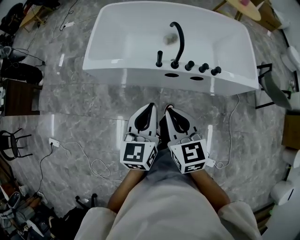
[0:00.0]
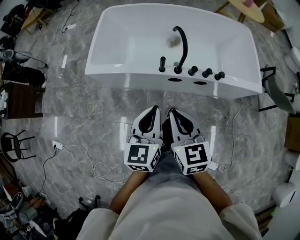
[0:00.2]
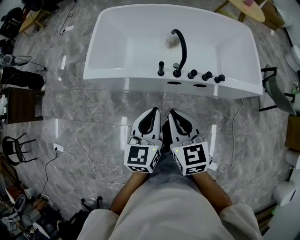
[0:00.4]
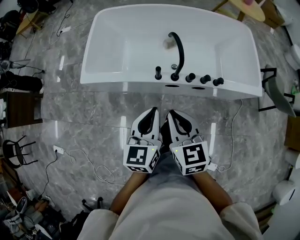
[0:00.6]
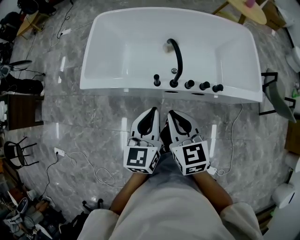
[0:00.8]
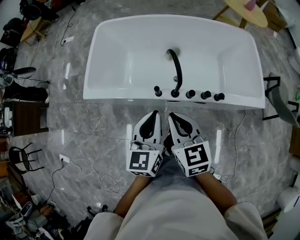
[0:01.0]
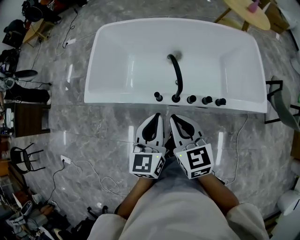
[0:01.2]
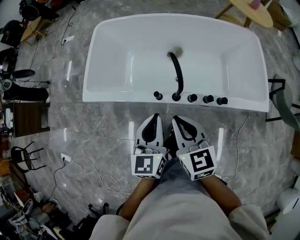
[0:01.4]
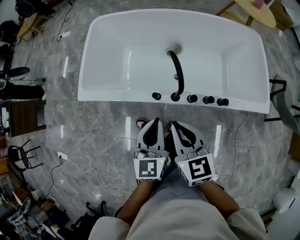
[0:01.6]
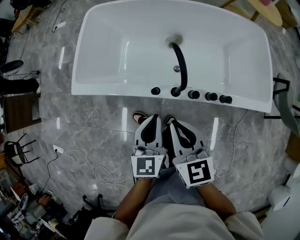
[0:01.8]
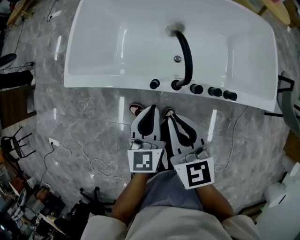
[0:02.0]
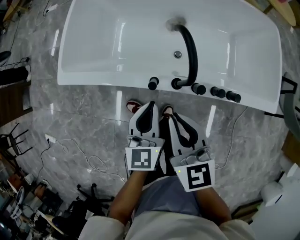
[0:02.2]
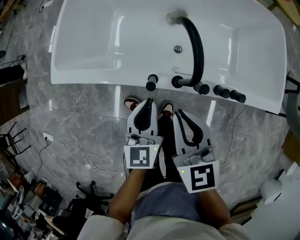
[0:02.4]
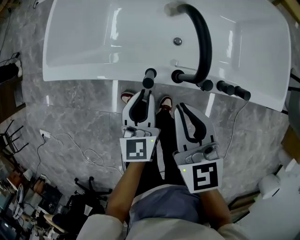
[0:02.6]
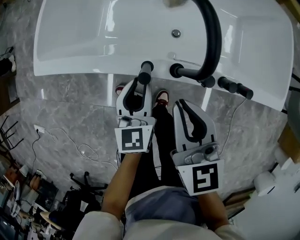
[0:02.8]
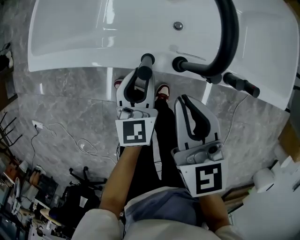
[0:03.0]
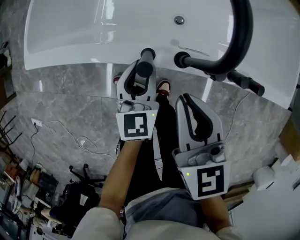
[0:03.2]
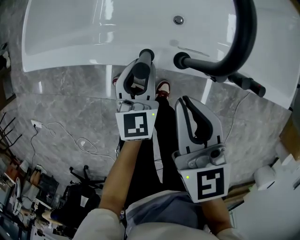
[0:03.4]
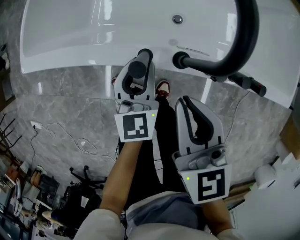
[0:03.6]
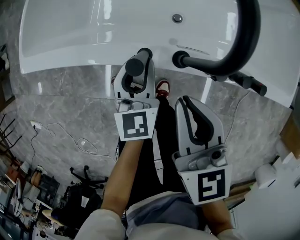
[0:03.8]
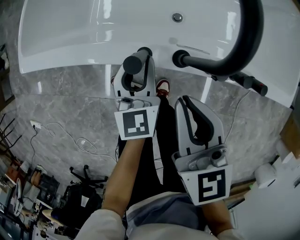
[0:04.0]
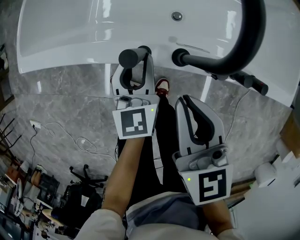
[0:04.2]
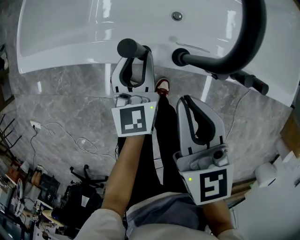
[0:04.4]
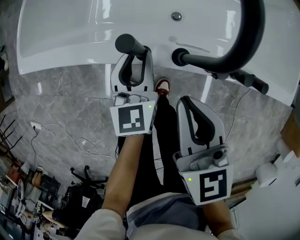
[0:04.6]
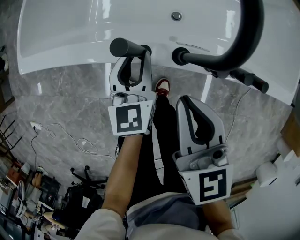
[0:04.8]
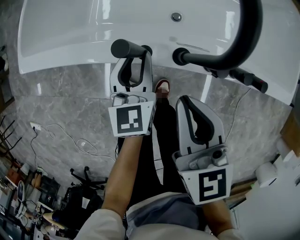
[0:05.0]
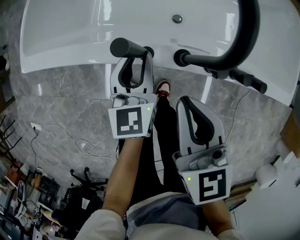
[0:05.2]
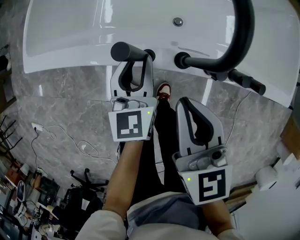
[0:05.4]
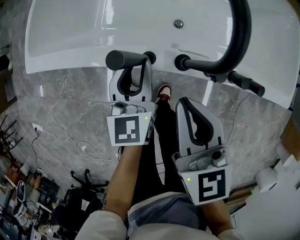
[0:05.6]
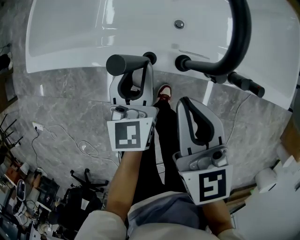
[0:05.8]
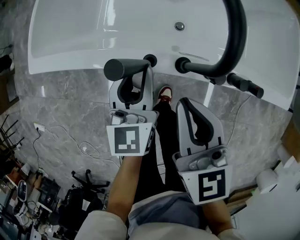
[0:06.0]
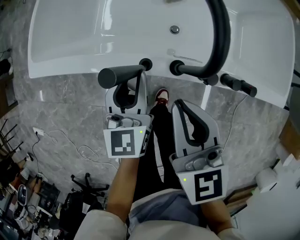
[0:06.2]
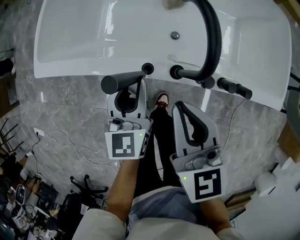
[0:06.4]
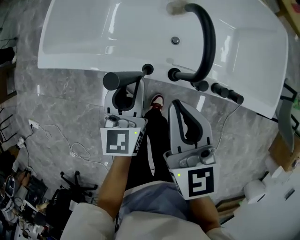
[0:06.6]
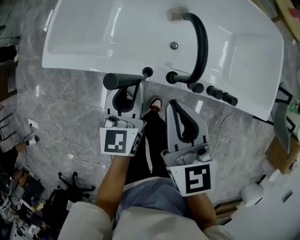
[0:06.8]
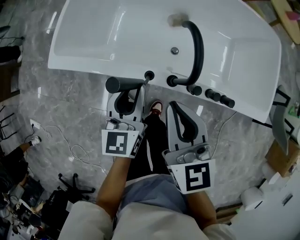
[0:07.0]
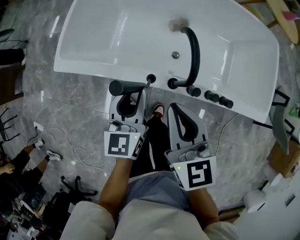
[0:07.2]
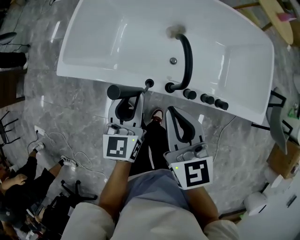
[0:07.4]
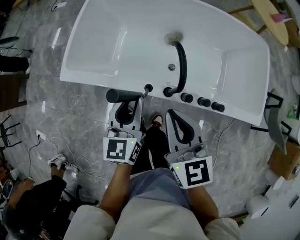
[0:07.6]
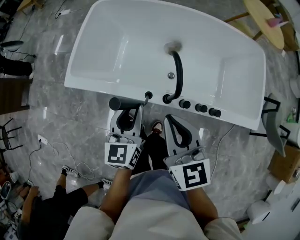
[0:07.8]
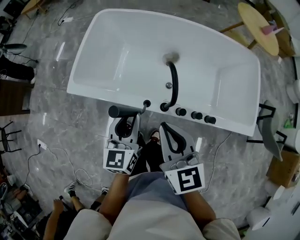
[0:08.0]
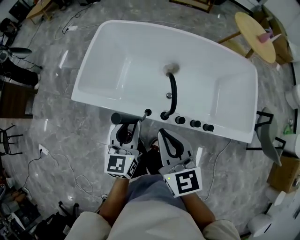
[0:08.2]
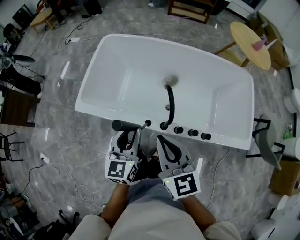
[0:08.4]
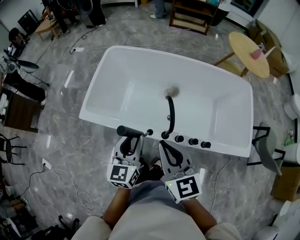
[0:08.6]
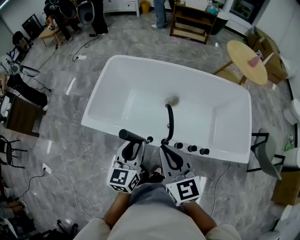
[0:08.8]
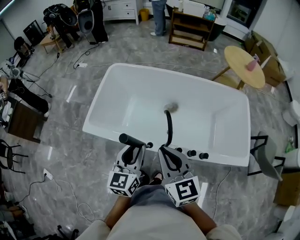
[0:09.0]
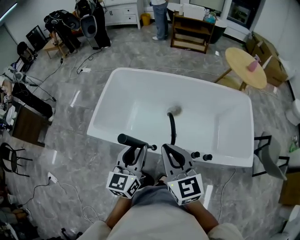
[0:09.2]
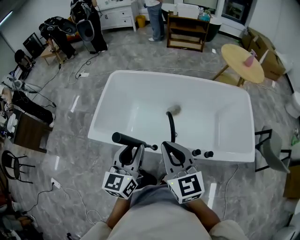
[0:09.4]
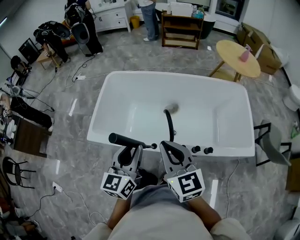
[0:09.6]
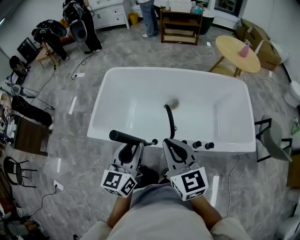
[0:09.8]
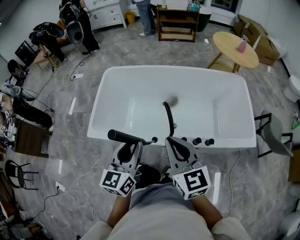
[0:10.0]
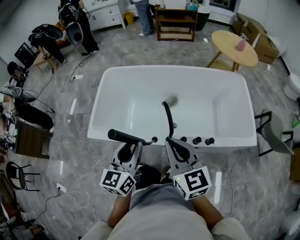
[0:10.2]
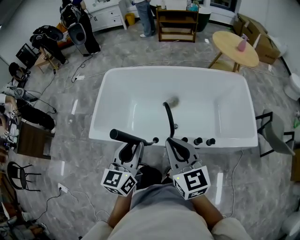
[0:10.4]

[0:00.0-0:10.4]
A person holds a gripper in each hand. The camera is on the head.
0:00.0 to 0:01.4: Both grippers move forward, some 20 cm.
0:01.4 to 0:03.0: The left gripper is displaced downward by approximately 30 cm, and opens. The right gripper heads downward, covering roughly 20 cm.
0:03.0 to 0:04.4: There are only small adjustments of the grippers.
0:04.4 to 0:06.0: The left gripper moves upward, some 5 cm.
0:06.0 to 0:07.4: The grippers both shift upward by about 15 cm.
0:07.4 to 0:09.0: The two grippers go roughly 15 cm upward.
0:09.0 to 0:10.4: There are only small adjustments of the grippers.

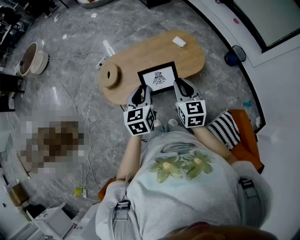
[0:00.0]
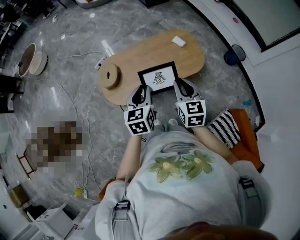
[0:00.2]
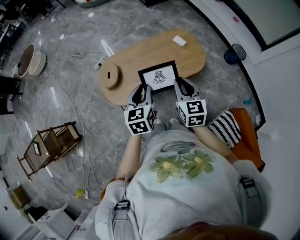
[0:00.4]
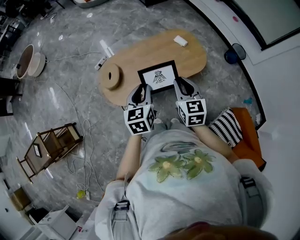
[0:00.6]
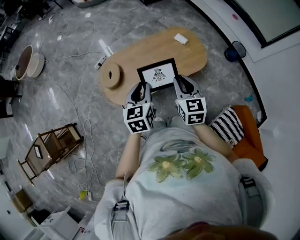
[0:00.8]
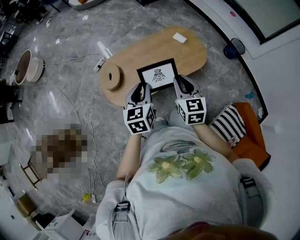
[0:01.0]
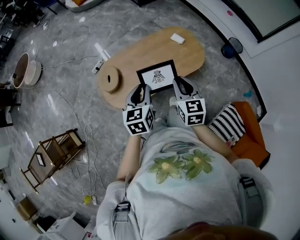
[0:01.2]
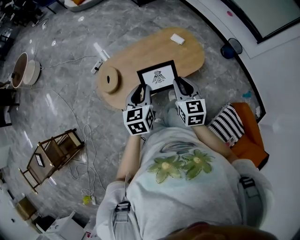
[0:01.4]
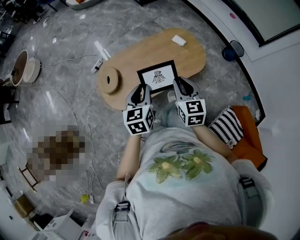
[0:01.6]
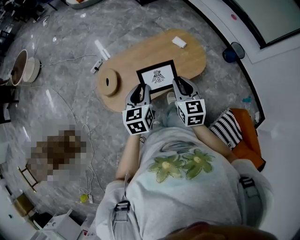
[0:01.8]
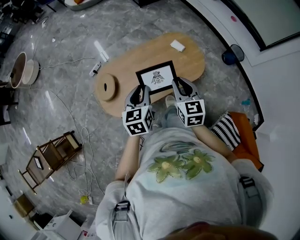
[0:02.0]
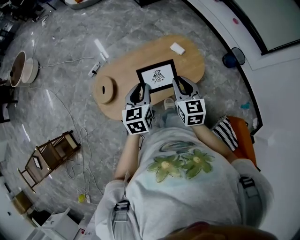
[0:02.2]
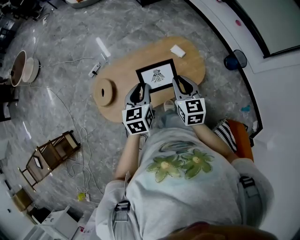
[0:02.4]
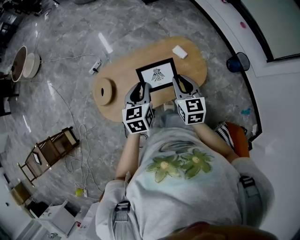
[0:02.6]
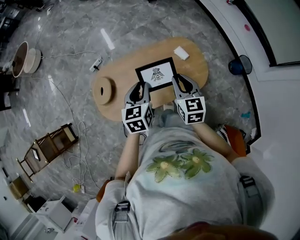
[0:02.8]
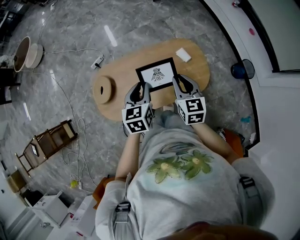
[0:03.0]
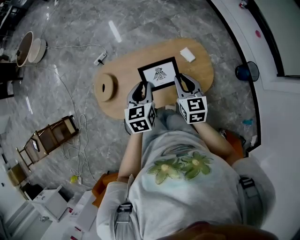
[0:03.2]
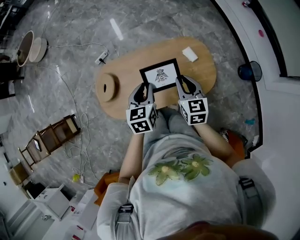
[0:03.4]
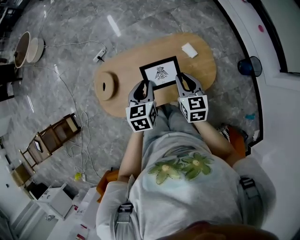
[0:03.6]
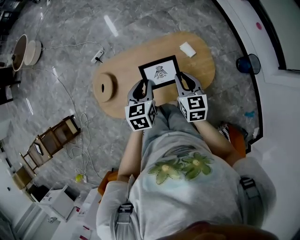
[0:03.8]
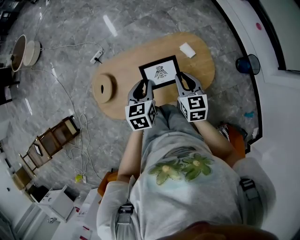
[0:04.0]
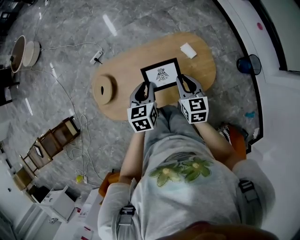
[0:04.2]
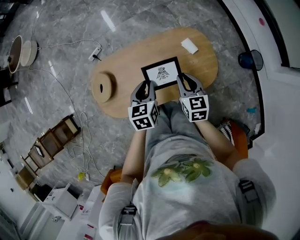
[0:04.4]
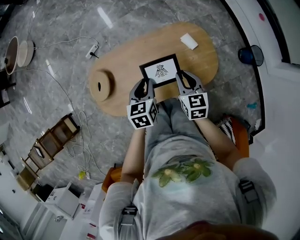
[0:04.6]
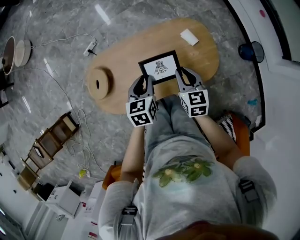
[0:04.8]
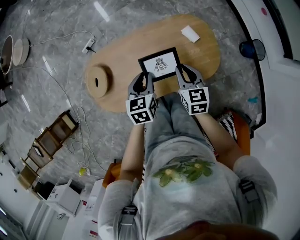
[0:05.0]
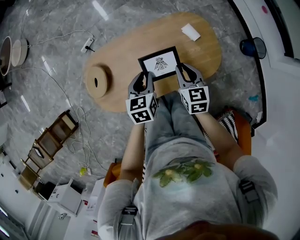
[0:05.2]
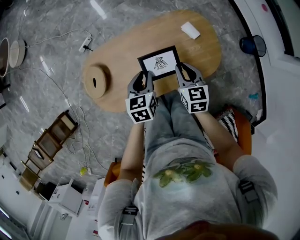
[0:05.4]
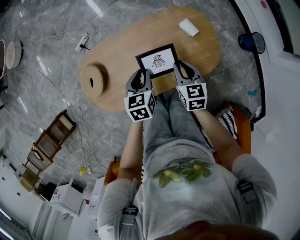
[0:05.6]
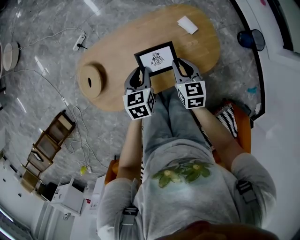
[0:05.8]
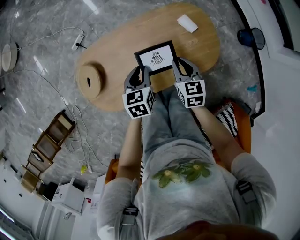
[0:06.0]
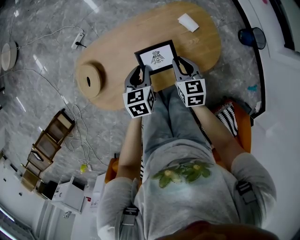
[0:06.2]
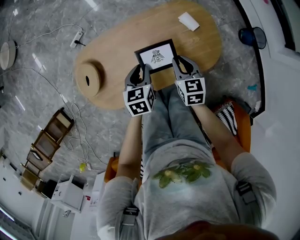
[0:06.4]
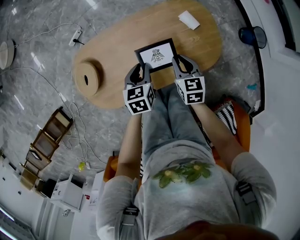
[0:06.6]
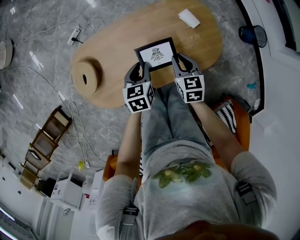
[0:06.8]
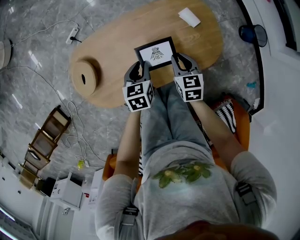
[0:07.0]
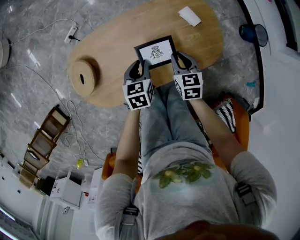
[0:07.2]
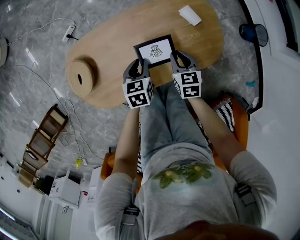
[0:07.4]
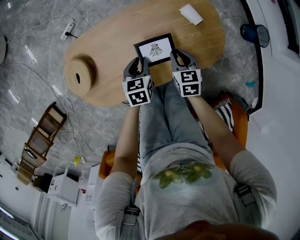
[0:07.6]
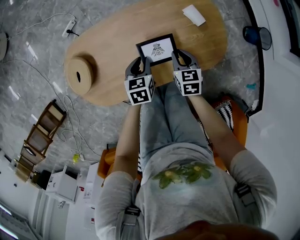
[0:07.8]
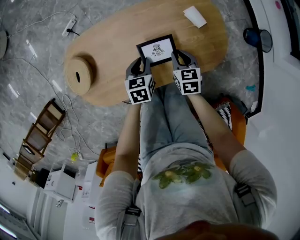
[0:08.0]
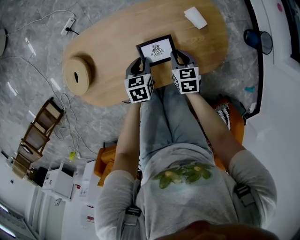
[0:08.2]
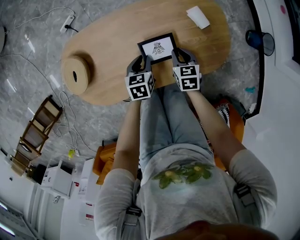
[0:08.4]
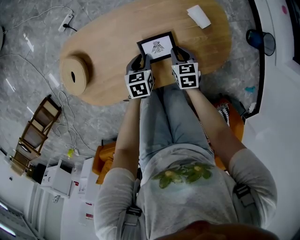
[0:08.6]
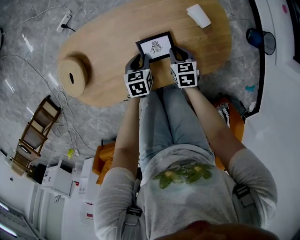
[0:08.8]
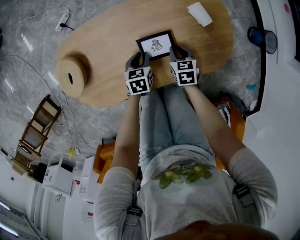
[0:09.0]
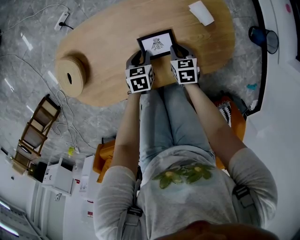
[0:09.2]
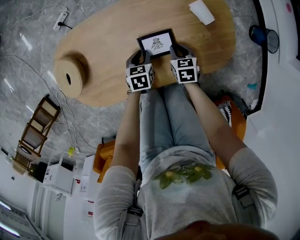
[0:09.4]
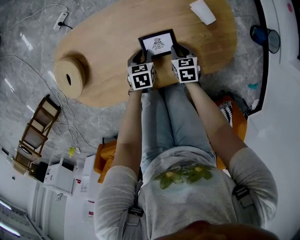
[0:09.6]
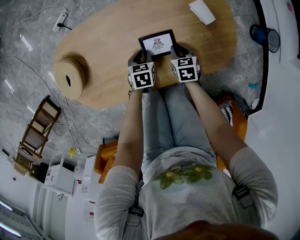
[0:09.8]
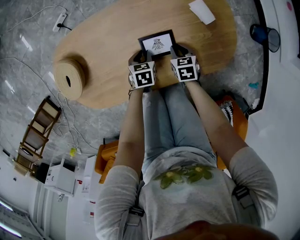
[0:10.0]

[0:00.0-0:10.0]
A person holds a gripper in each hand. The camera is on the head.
0:00.0 to 0:01.4: The right gripper ends up roughly 5 cm from where it was. The left gripper ends up roughly 5 cm from where it was.
0:01.4 to 0:02.8: The grippers both shift forward by about 20 cm.
0:02.8 to 0:04.2: The two grippers go approximately 10 cm downward.
0:04.2 to 0:05.8: The grippers both shift downward by about 10 cm.
0:05.8 to 0:07.2: Both grippers move downward, some 10 cm.
0:07.2 to 0:08.6: Both grippers travel together downward, roughly 10 cm.
0:08.6 to 0:10.0: Both grippers move downward, roughly 10 cm.

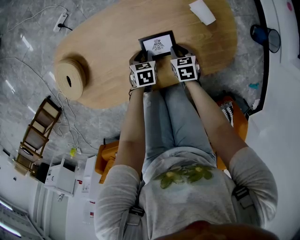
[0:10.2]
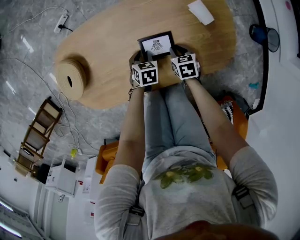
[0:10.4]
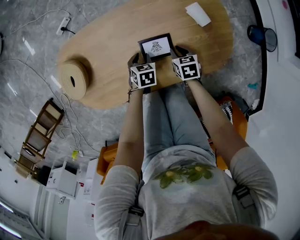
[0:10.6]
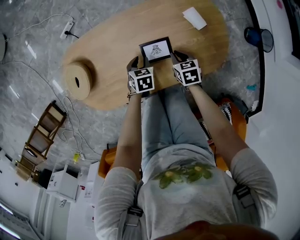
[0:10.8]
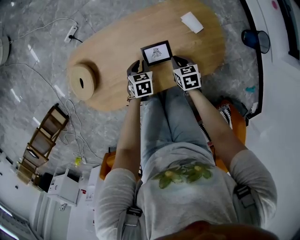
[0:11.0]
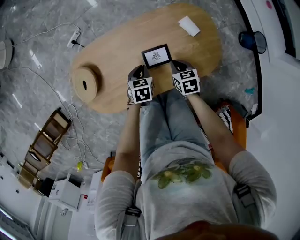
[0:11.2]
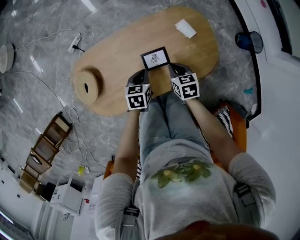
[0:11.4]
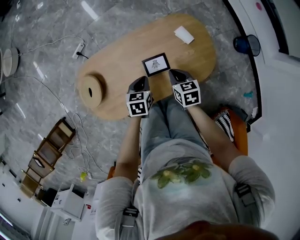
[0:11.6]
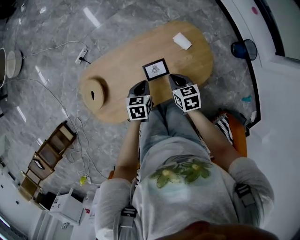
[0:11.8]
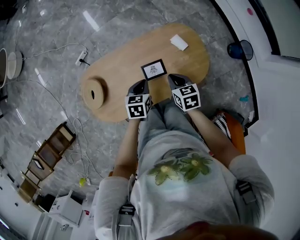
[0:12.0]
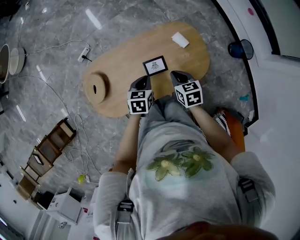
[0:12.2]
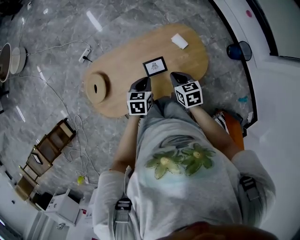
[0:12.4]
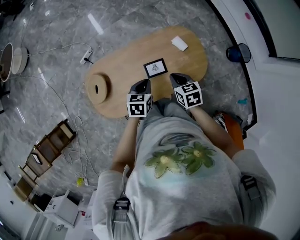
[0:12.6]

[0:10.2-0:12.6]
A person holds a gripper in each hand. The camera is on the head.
0:10.2 to 0:11.4: The two grippers go approximately 20 cm upward. The left gripper closes.
0:11.4 to 0:12.6: Both grippers move upward, about 15 cm.

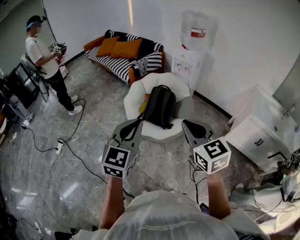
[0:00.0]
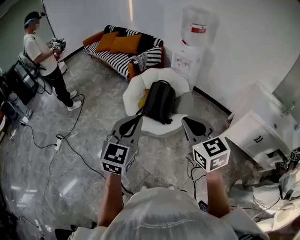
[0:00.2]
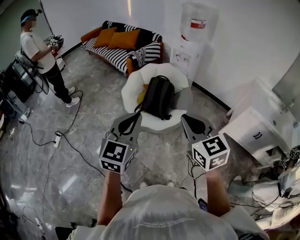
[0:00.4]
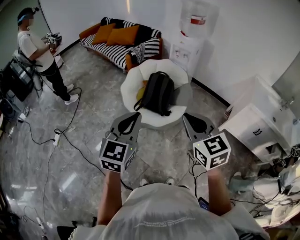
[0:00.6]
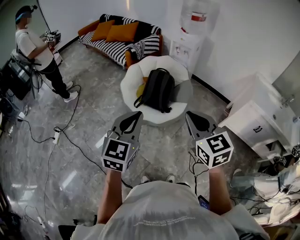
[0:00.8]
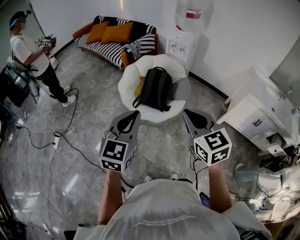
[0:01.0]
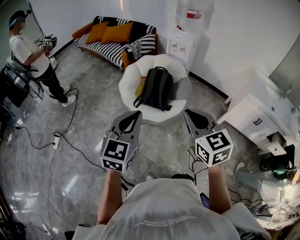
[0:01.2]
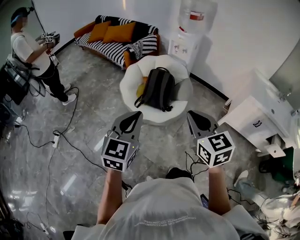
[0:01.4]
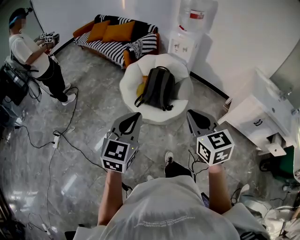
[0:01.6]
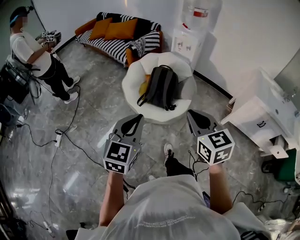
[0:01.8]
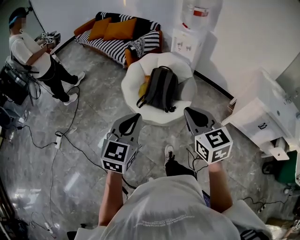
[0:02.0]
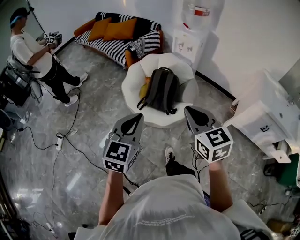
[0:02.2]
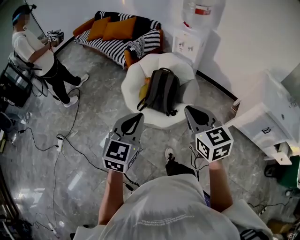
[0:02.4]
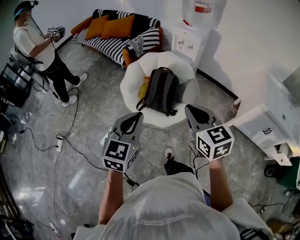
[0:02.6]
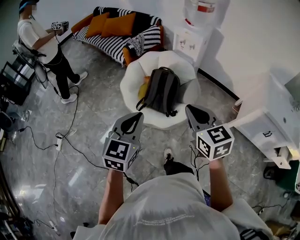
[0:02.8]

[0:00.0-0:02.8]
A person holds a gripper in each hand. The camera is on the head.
0:00.0 to 0:01.4: The left gripper moves to the left, some 5 cm. The right gripper changes place by roughly 5 cm.
0:01.4 to 0:02.8: Both grippers move forward, approximately 20 cm.
